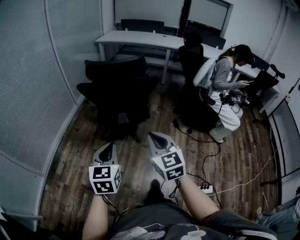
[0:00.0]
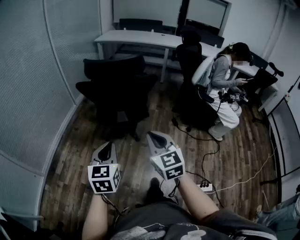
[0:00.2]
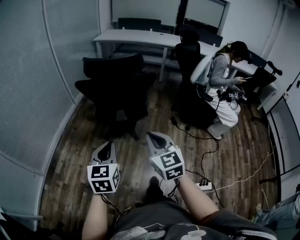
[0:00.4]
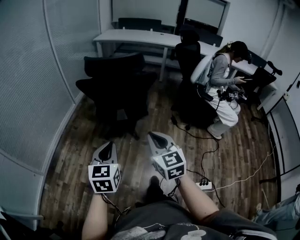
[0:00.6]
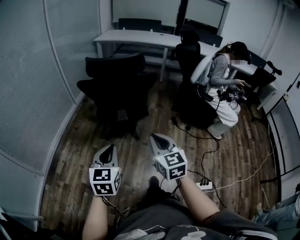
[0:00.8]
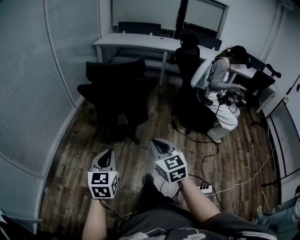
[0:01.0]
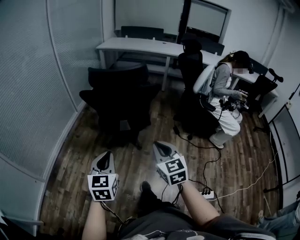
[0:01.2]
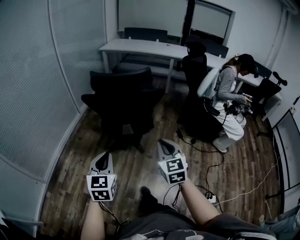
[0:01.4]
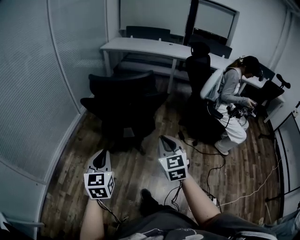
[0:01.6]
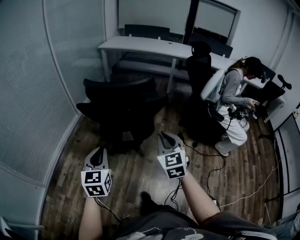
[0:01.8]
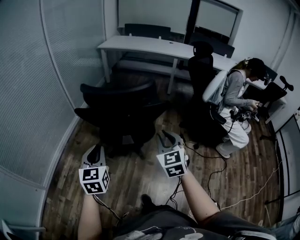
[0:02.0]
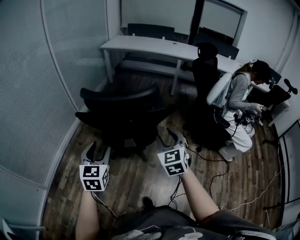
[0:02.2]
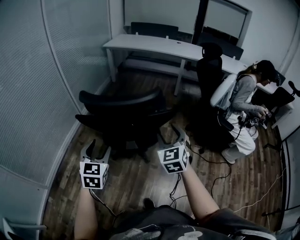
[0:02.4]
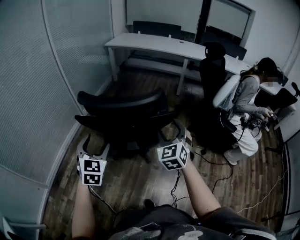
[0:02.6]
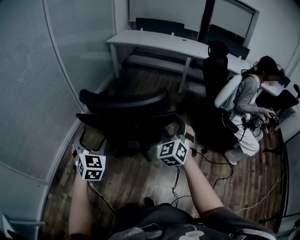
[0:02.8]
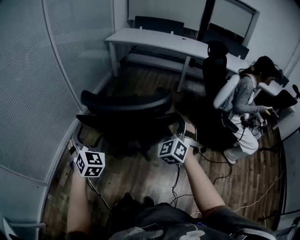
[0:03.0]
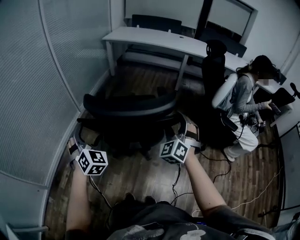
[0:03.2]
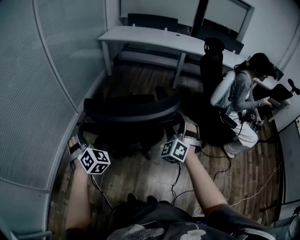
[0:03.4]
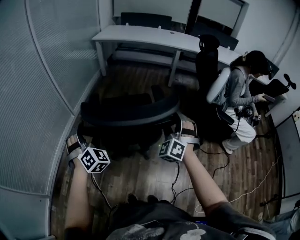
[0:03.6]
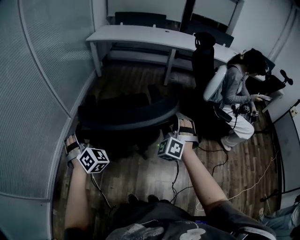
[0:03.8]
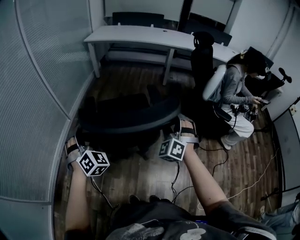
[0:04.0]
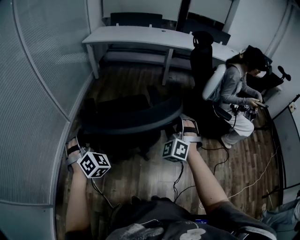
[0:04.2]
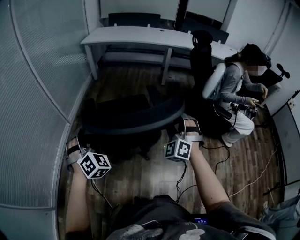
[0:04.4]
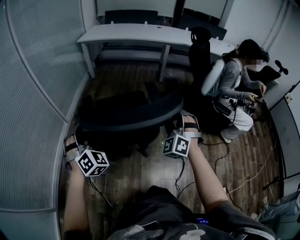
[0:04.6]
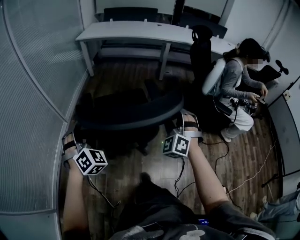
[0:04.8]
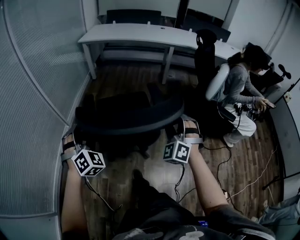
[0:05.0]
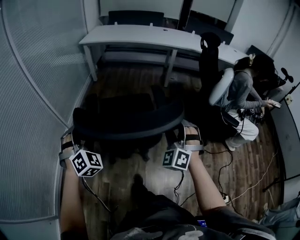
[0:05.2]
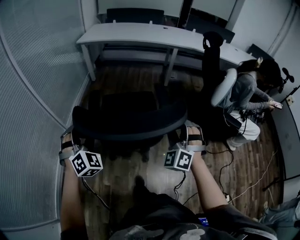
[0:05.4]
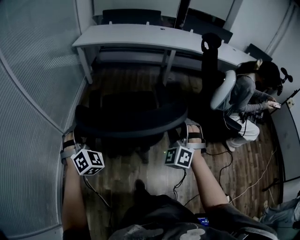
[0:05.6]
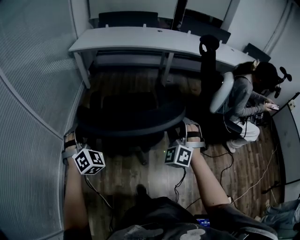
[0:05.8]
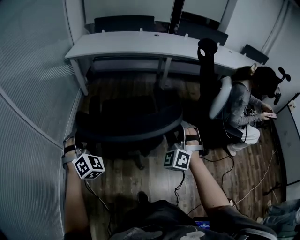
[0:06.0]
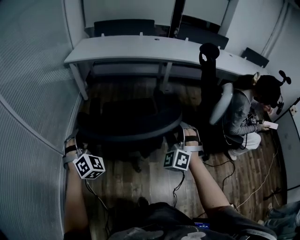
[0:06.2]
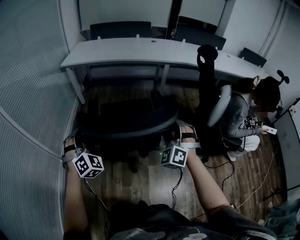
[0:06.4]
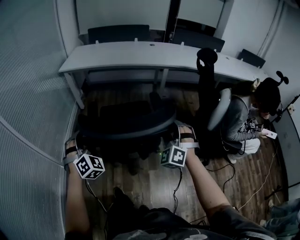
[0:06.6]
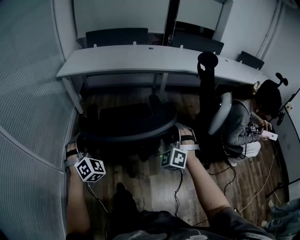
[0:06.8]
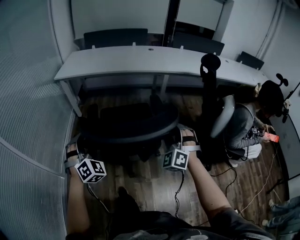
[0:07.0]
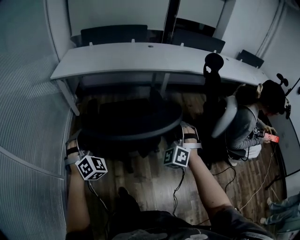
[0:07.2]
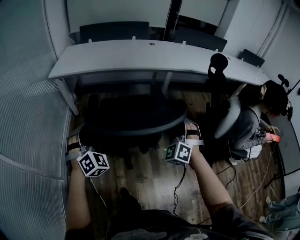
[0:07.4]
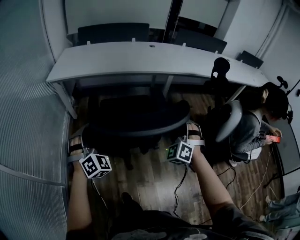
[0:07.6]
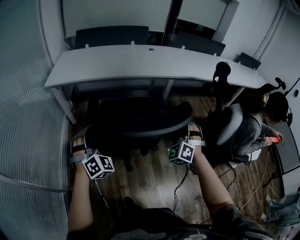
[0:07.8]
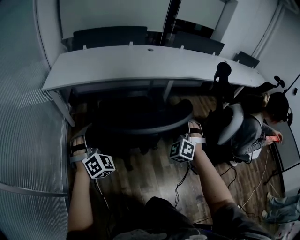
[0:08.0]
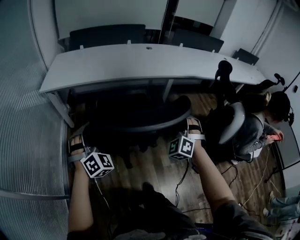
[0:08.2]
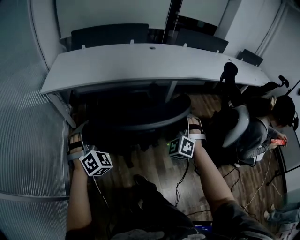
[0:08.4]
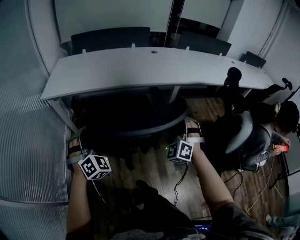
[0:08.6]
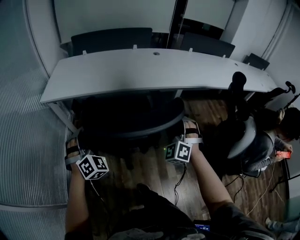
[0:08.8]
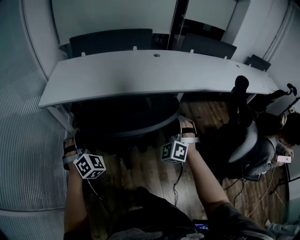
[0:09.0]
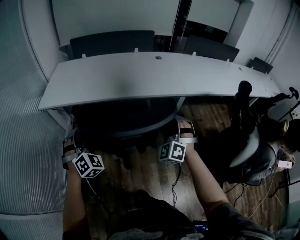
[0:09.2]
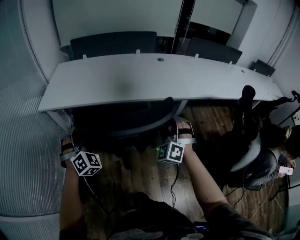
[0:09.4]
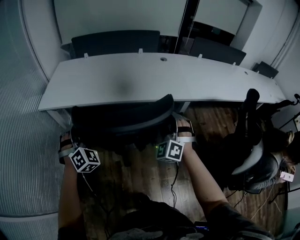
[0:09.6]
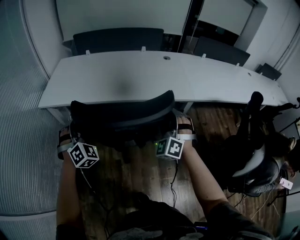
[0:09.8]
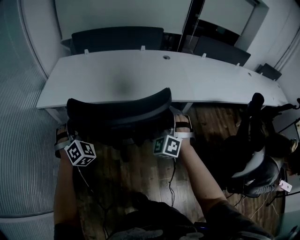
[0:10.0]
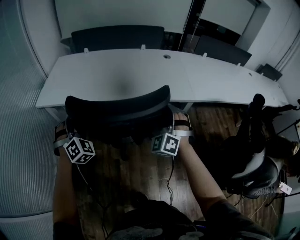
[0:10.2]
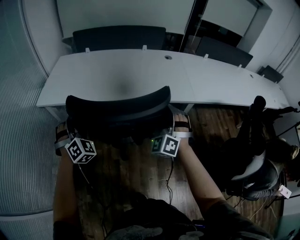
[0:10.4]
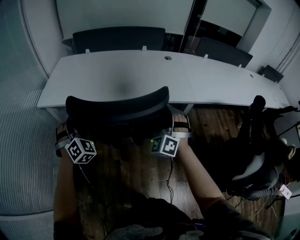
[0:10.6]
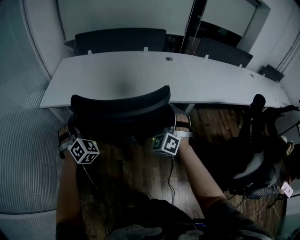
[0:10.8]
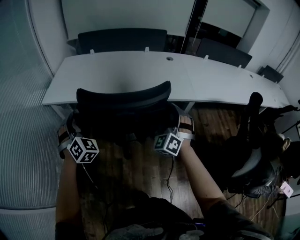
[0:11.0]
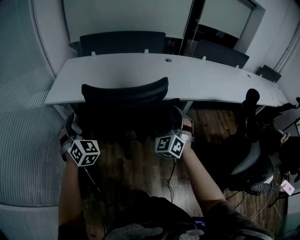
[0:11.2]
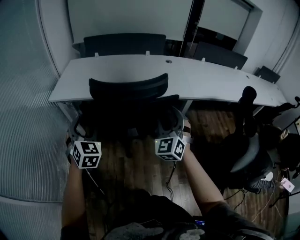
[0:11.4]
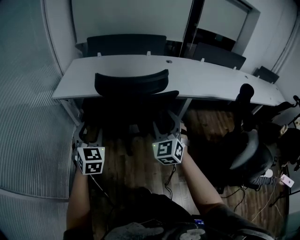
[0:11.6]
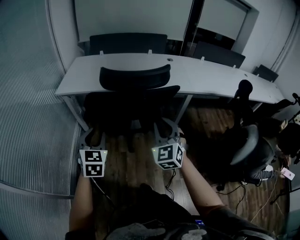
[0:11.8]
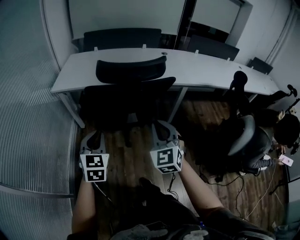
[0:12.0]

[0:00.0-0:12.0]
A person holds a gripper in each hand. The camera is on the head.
0:00.0 to 0:01.6: The right gripper is displaced forward by roughly 10 cm. The left gripper shifts approximately 10 cm forward and to the left.
0:01.6 to 0:03.0: The grippers both shift forward by approximately 25 cm. The left gripper turns by about 40 degrees, and opens. Meanwhile the right gripper rotates some 40 degrees, and opens.
0:03.0 to 0:04.4: The left gripper is displaced forward by roughly 10 cm, and rotates about 20 degrees. The right gripper goes roughly 5 cm forward.
0:04.4 to 0:06.0: Both grippers travel together forward, some 30 cm.
0:06.0 to 0:07.6: Both grippers travel together forward, some 35 cm.
0:07.6 to 0:09.0: The grippers both shift forward by approximately 25 cm.
0:09.0 to 0:10.4: The two grippers go approximately 15 cm forward.
0:10.4 to 0:12.0: The grippers both shift backward by about 30 cm. The right gripper turns by approximately 40 degrees, and closes its fingers, while the left gripper rotates around the line of its fingers by approximately 50 degrees, counterclockwise from behind, and closes its fingers.

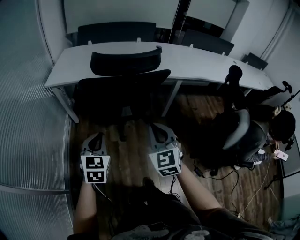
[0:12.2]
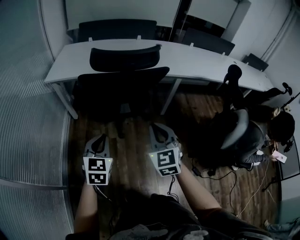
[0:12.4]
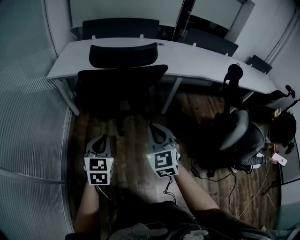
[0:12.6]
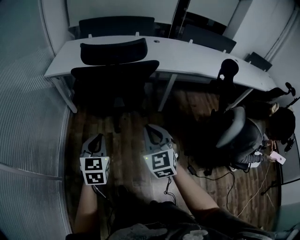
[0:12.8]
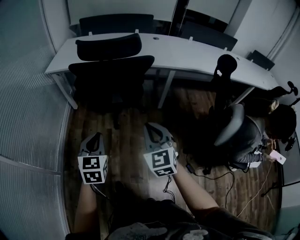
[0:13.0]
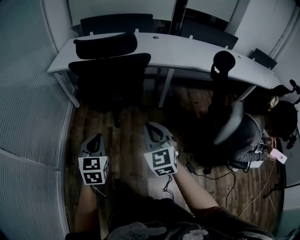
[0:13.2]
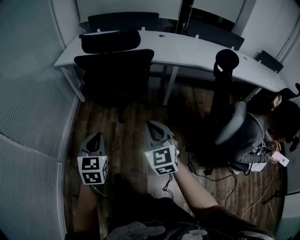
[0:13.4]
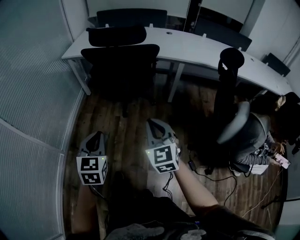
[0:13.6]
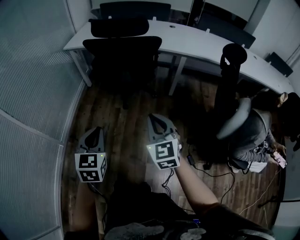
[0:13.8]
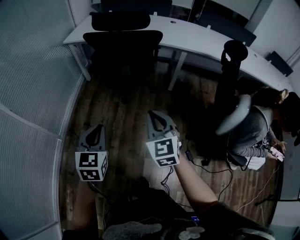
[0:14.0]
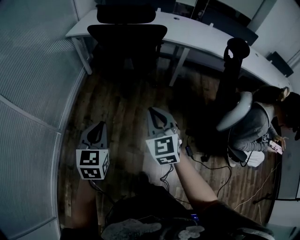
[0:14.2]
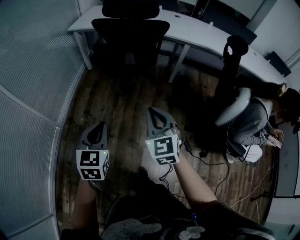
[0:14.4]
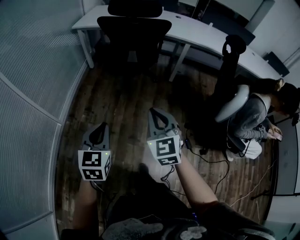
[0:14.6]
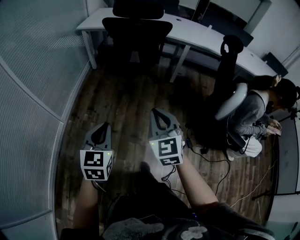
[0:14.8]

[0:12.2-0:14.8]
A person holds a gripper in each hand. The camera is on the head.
0:12.2 to 0:13.4: The two grippers go roughly 25 cm backward and to the right.
0:13.4 to 0:14.8: The two grippers go some 25 cm backward.

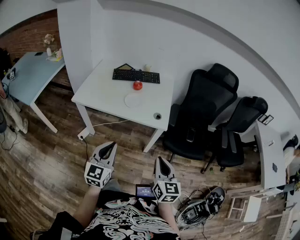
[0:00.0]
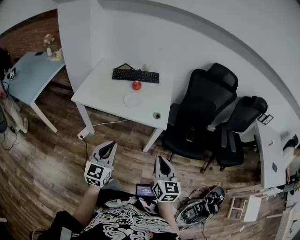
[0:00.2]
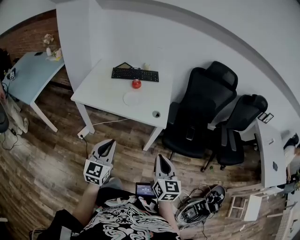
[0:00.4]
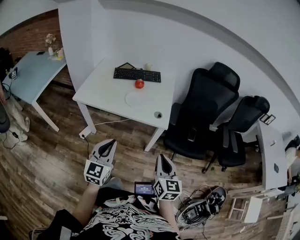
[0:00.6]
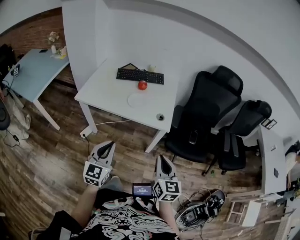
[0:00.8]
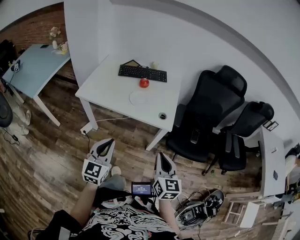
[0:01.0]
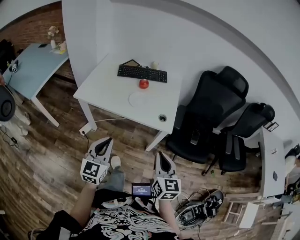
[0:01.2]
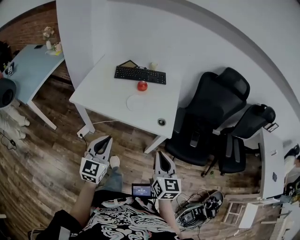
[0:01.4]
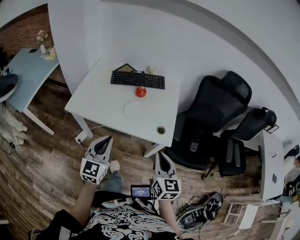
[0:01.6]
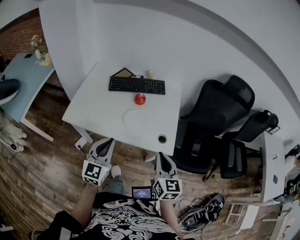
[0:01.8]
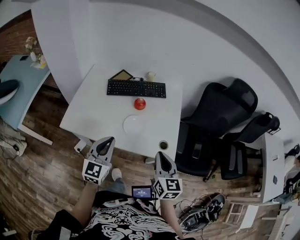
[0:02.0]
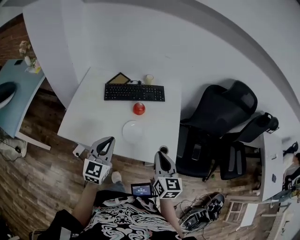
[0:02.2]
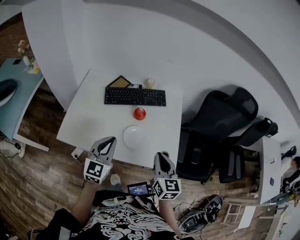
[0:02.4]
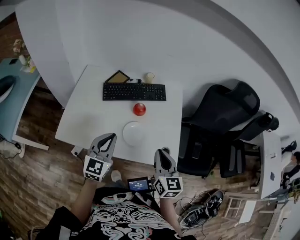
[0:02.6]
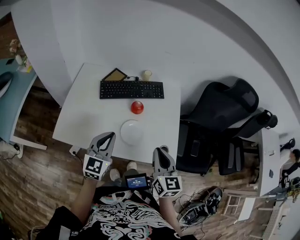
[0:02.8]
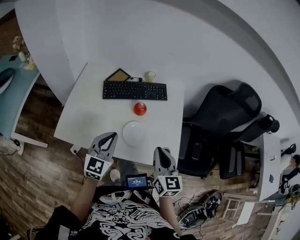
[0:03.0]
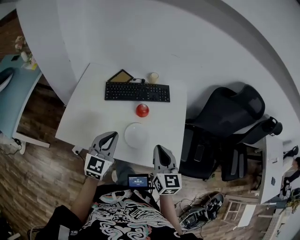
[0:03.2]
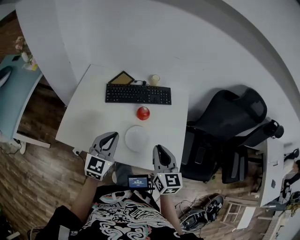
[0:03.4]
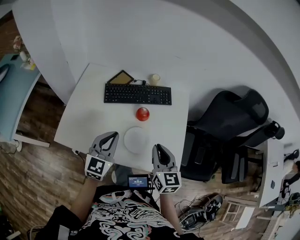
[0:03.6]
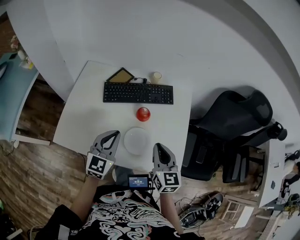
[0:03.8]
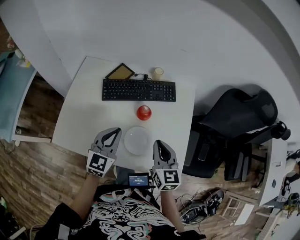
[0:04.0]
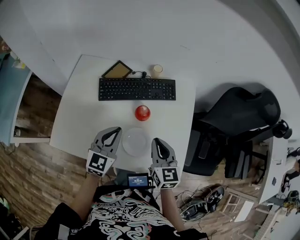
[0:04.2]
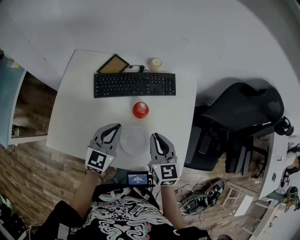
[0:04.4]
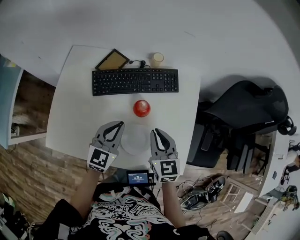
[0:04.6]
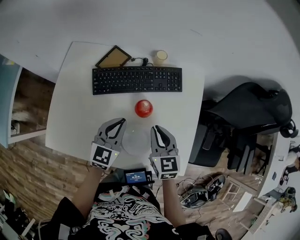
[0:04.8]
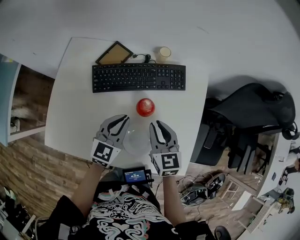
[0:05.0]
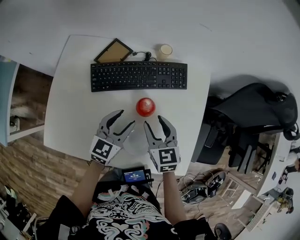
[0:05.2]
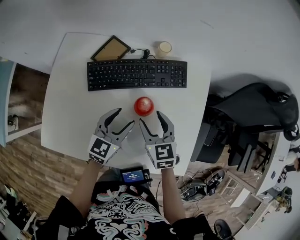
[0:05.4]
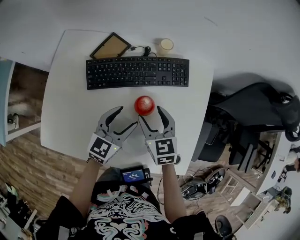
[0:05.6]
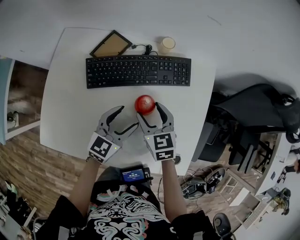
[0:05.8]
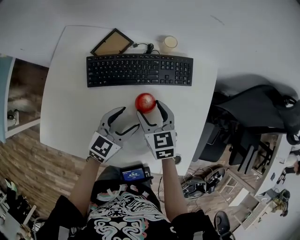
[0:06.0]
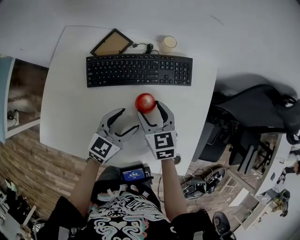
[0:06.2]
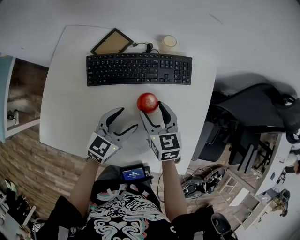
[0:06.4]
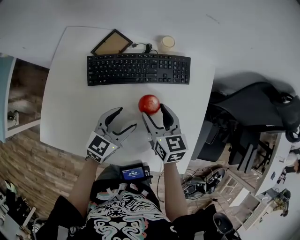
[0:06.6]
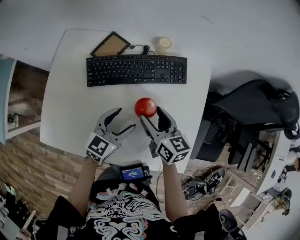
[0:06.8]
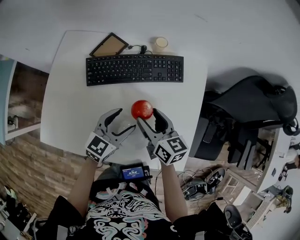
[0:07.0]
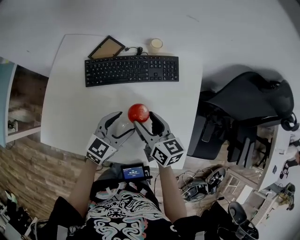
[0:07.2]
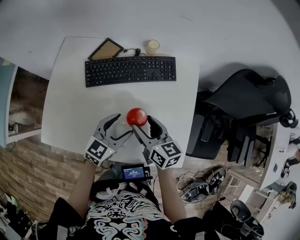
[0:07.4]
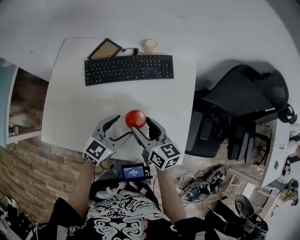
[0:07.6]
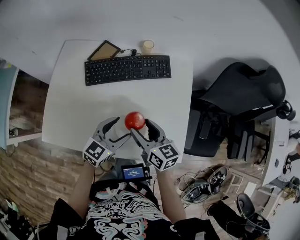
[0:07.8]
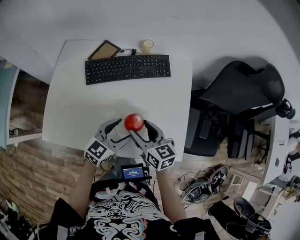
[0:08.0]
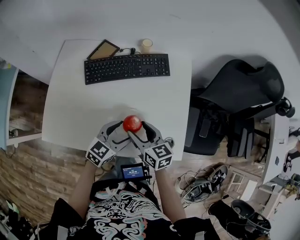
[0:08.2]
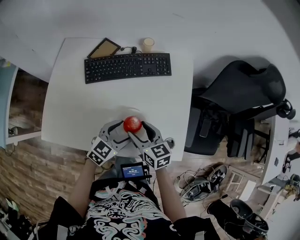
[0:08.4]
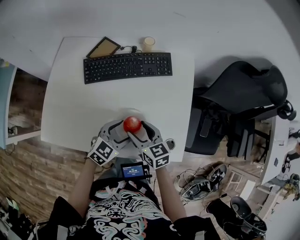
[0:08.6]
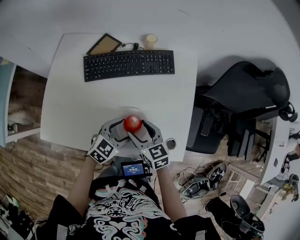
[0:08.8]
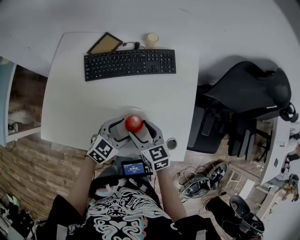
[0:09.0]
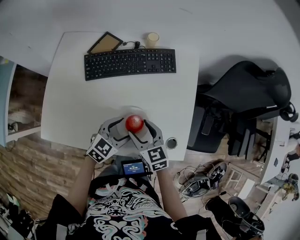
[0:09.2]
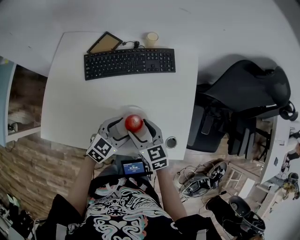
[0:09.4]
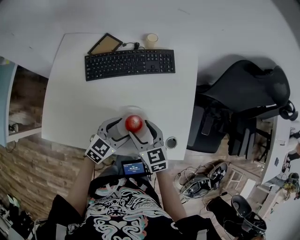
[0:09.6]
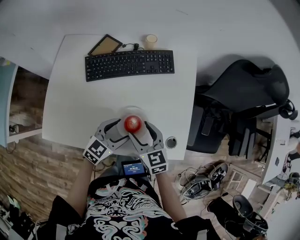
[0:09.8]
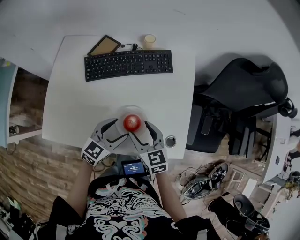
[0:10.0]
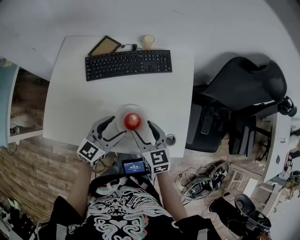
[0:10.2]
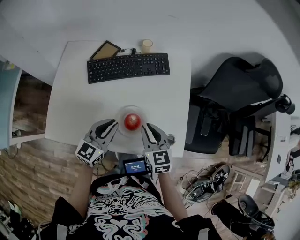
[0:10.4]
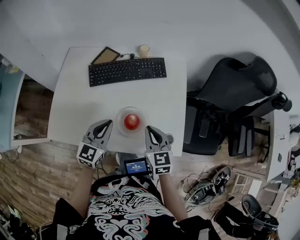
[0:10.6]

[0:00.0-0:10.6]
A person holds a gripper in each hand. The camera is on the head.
0:00.0 to 0:01.6: The grippers both shift forward by about 20 cm.
0:01.6 to 0:03.0: The two grippers go about 25 cm forward.
0:03.0 to 0:04.6: Both grippers travel together forward and downward, some 20 cm.
0:04.6 to 0:06.0: The left gripper moves downward, about 10 cm, and opens; the right gripper heads forward, downward and to the left, covering roughly 15 cm, and opens its fingers.
0:06.0 to 0:07.6: The left gripper is displaced backward by roughly 10 cm; the right gripper heads backward and upward, covering some 15 cm, and changes its angle by roughly 30 degrees.
0:07.6 to 0:09.0: The grippers both shift downward by approximately 5 cm. The right gripper swivels some 20 degrees.
0:09.0 to 0:10.6: The right gripper goes roughly 10 cm upward and to the right, and closes its fingers. The left gripper is displaced upward and to the left by roughly 15 cm, changes its angle by about 30 degrees, and closes up.
